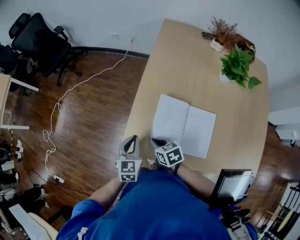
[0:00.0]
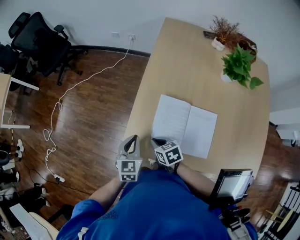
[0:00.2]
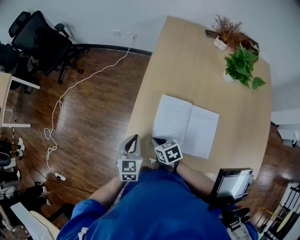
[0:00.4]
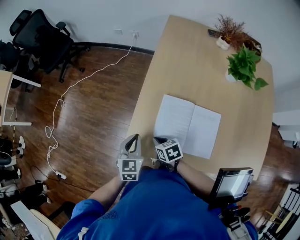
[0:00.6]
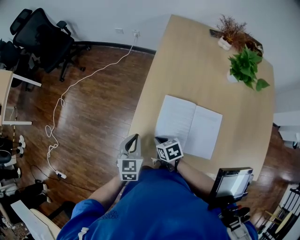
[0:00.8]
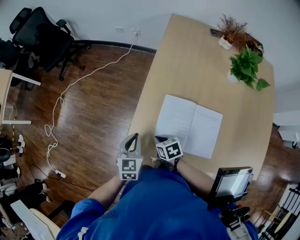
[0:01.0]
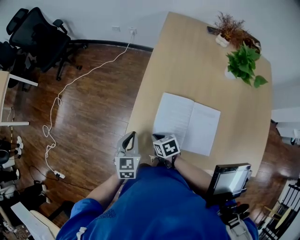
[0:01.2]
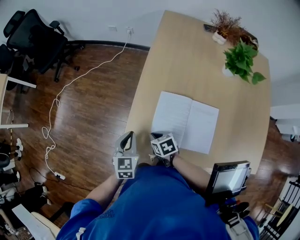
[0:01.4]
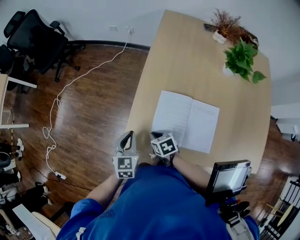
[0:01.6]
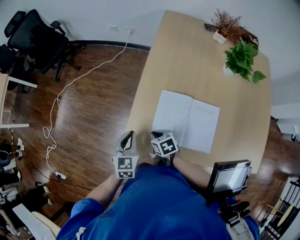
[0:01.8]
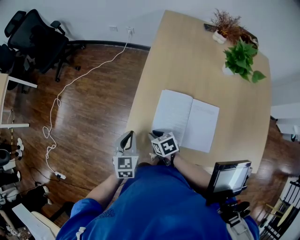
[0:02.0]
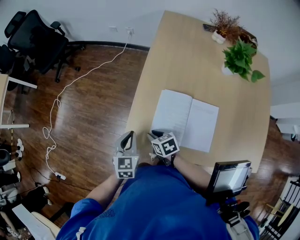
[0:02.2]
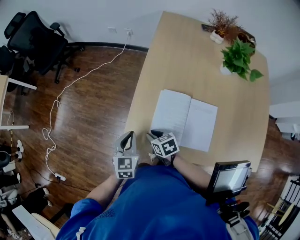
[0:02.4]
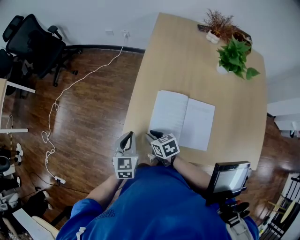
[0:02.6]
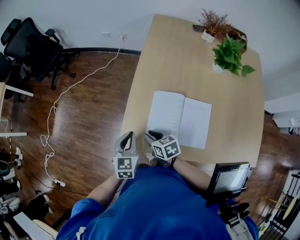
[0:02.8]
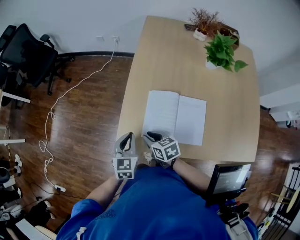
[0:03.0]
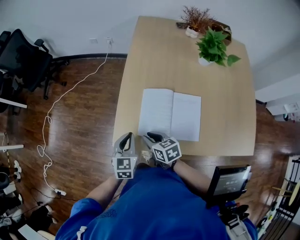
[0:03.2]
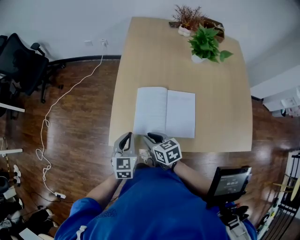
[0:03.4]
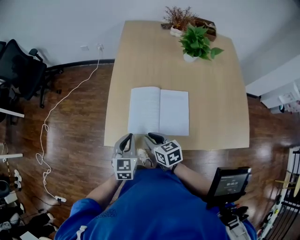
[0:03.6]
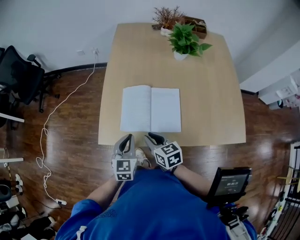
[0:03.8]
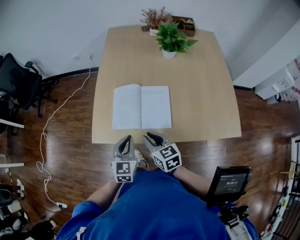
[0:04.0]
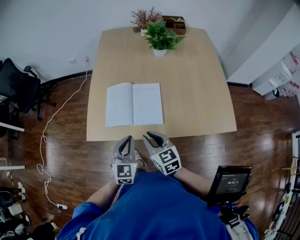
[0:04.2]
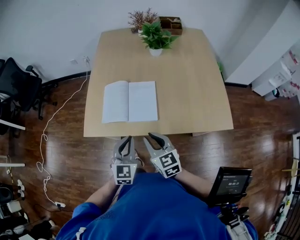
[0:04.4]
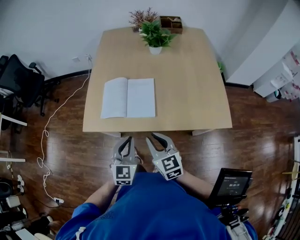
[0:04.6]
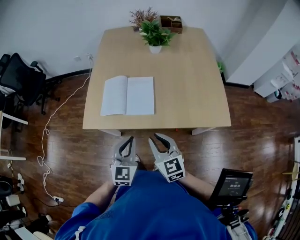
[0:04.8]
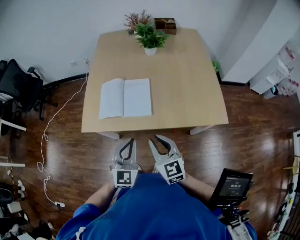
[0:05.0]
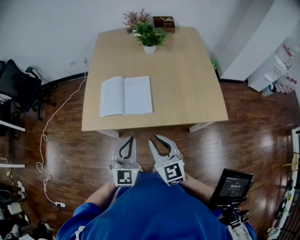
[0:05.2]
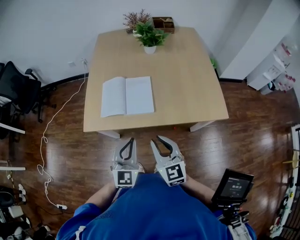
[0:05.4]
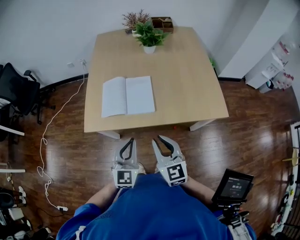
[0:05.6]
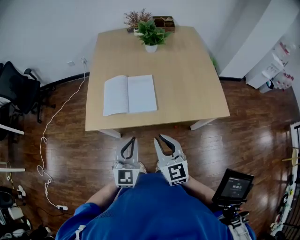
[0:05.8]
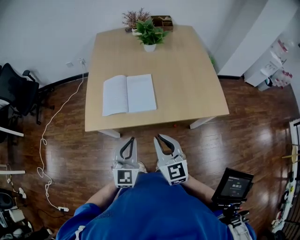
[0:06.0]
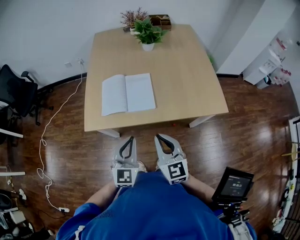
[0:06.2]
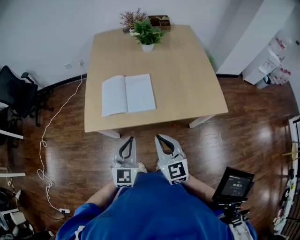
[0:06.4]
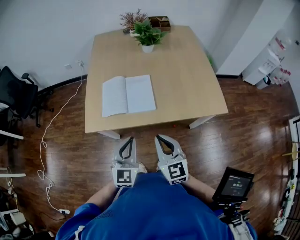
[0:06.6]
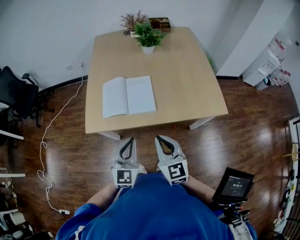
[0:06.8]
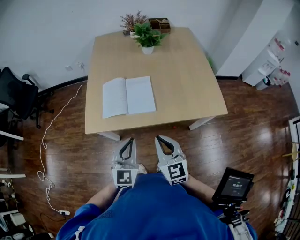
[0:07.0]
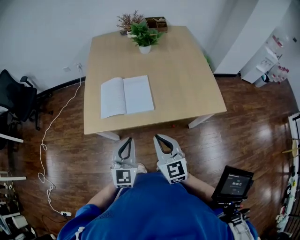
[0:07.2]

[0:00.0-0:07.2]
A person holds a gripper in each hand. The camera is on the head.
0.0 to 1.4 s: The right gripper heads downward, covering about 5 cm.
1.4 to 2.8 s: The right gripper is displaced upward by roughly 5 cm.
2.8 to 4.4 s: The left gripper is displaced backward and to the right by approximately 30 cm, and rotates roughly 20 degrees. Meanwhile the right gripper travels backward, to the right and upward by about 35 cm, and turns by some 40 degrees.
4.4 to 5.8 s: The left gripper is displaced backward by about 10 cm, while the right gripper is displaced backward and upward by approximately 10 cm.
5.8 to 7.2 s: Both grippers stay put.

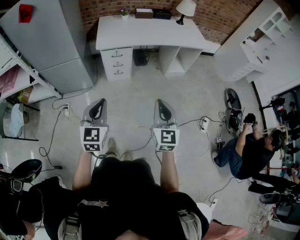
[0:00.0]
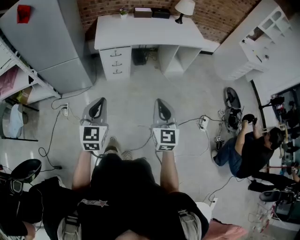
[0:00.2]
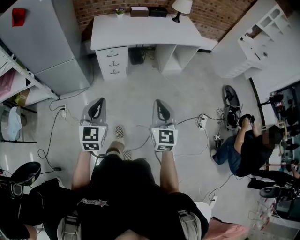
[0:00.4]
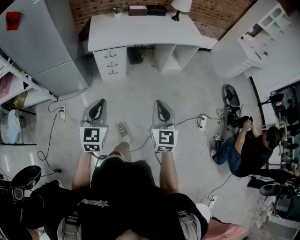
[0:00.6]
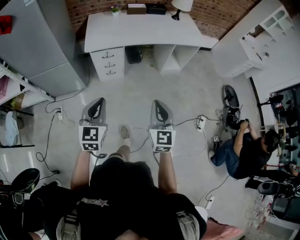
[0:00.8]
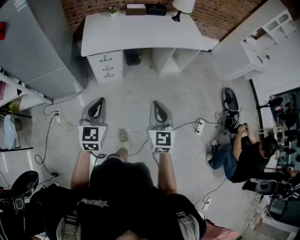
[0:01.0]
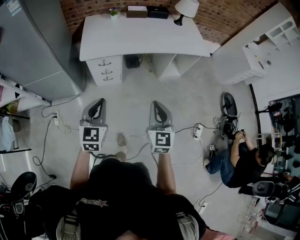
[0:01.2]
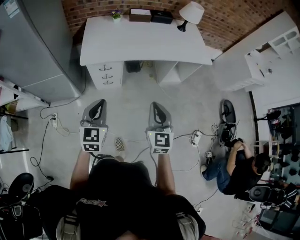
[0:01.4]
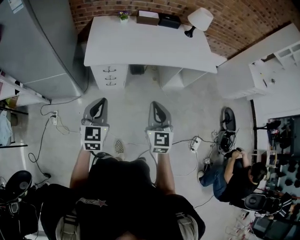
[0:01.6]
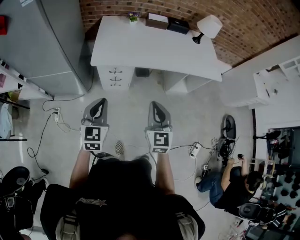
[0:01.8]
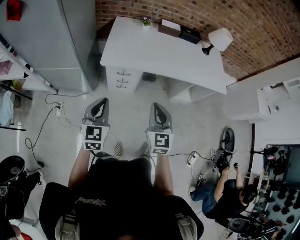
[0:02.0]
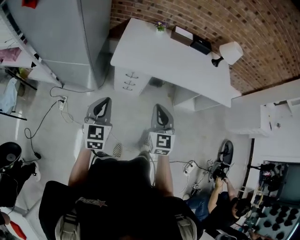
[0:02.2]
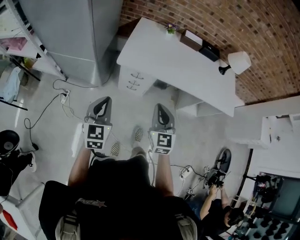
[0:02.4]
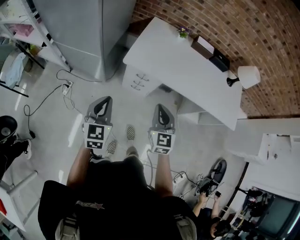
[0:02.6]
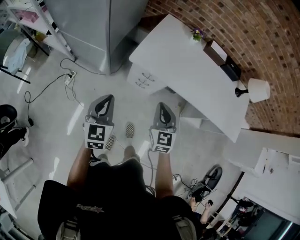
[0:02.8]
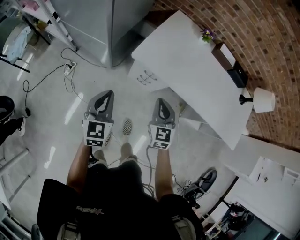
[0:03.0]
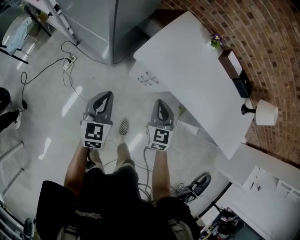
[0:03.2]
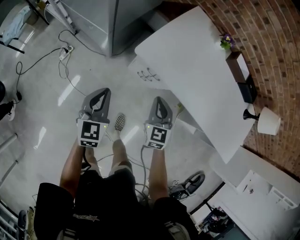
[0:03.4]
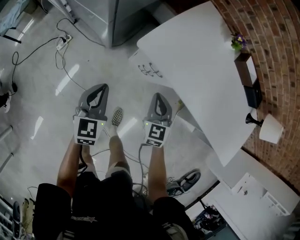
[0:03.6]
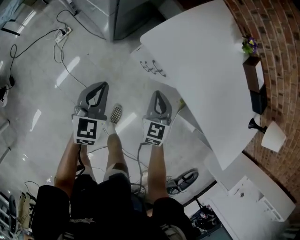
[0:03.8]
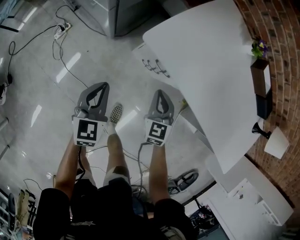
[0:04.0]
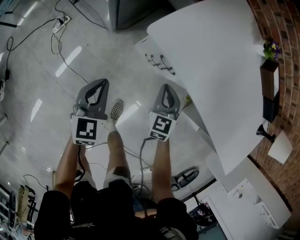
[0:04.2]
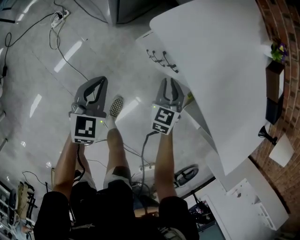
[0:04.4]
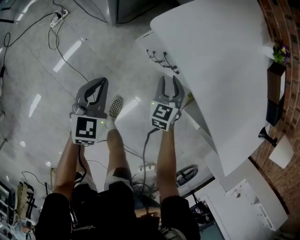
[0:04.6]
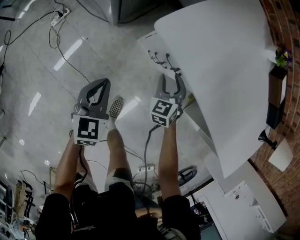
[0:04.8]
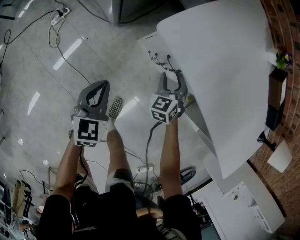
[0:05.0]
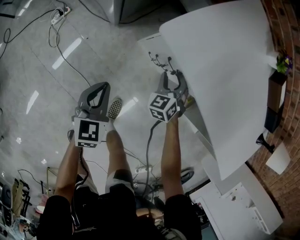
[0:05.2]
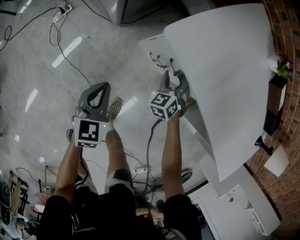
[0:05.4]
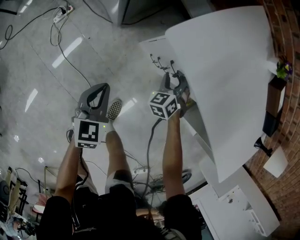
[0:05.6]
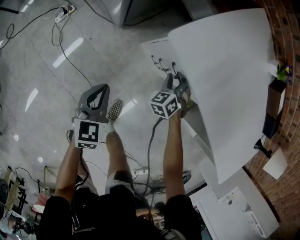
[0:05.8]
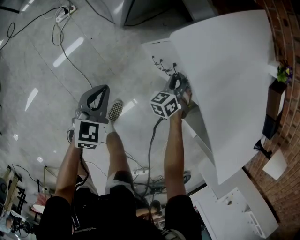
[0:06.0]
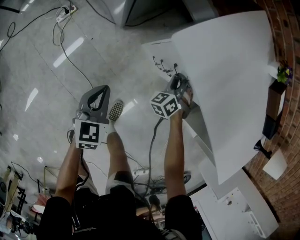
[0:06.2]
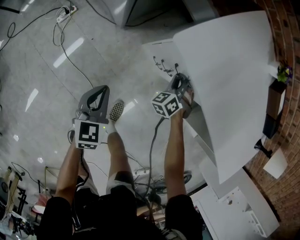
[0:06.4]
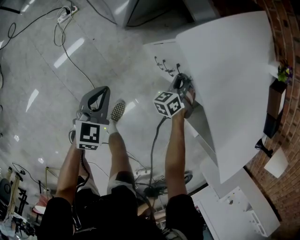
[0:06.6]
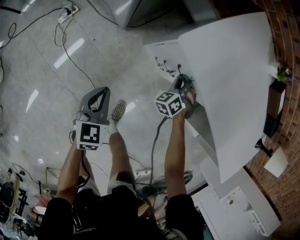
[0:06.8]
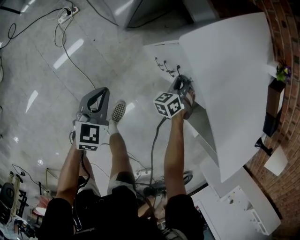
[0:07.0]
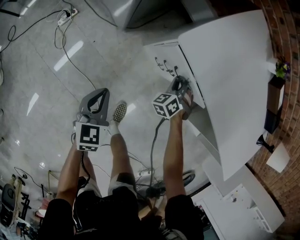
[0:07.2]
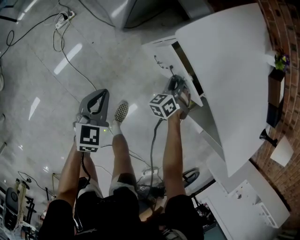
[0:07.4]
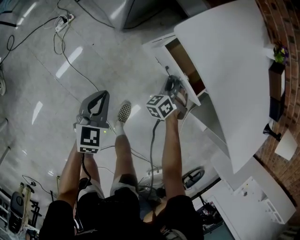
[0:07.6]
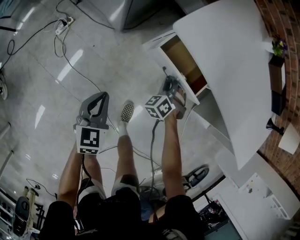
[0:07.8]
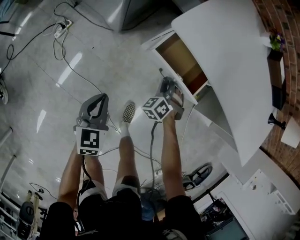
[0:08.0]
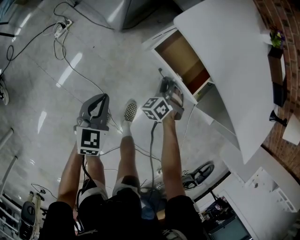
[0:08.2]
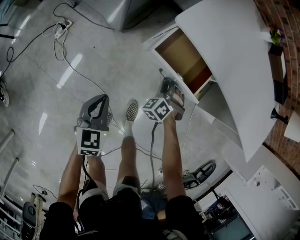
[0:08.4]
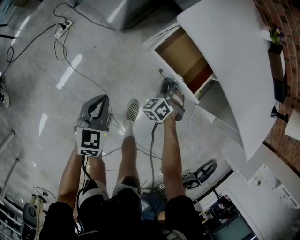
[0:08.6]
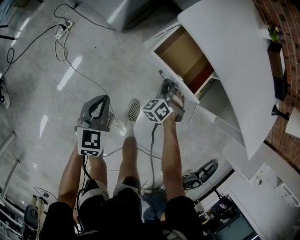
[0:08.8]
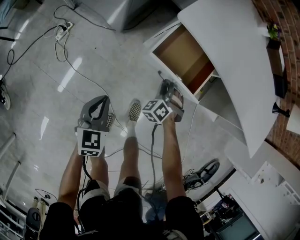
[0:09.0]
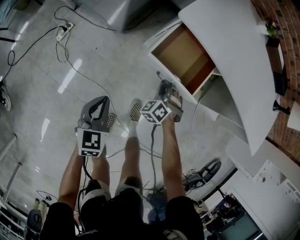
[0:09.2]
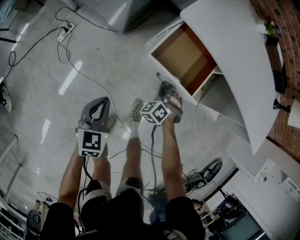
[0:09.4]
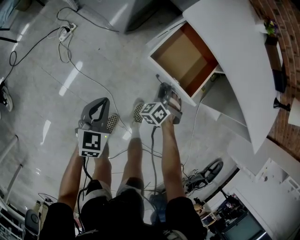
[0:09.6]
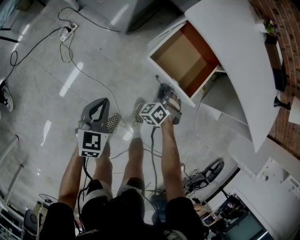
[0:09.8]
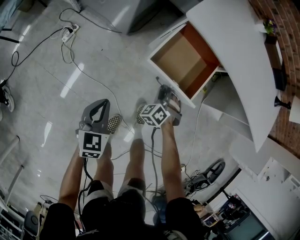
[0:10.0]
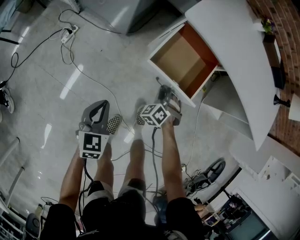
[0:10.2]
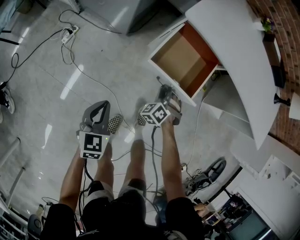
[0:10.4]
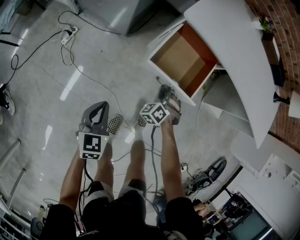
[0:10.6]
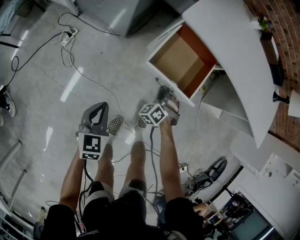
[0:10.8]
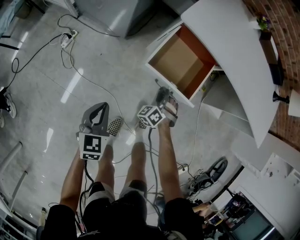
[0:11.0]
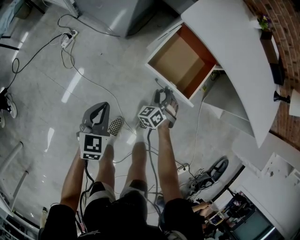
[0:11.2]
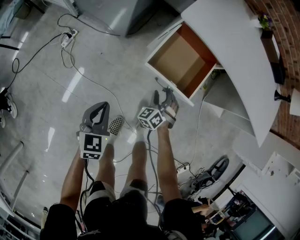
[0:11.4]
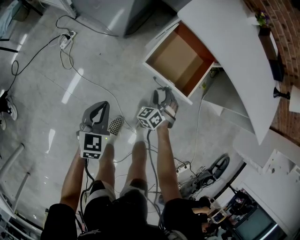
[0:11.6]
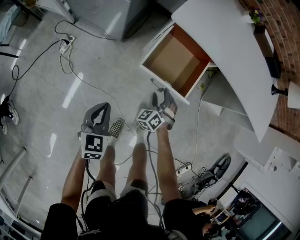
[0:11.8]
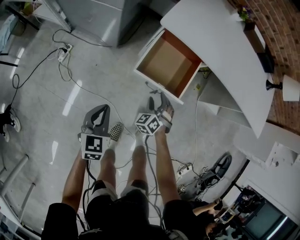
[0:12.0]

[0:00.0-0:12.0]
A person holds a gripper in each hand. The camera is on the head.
0.0 to 1.6 s: The two grippers go roughly 30 cm forward.
1.6 to 3.0 s: The right gripper ends up approximately 35 cm from where it was, and rotates some 30 degrees, while the left gripper ends up about 20 cm from where it was, and changes its angle by roughly 30 degrees.
3.0 to 4.4 s: The left gripper moves downward, some 30 cm. Meanwhile the right gripper shifts roughly 35 cm downward and forward, and swivels roughly 20 degrees.
4.4 to 6.0 s: The left gripper changes place by approximately 5 cm; the right gripper is displaced downward and forward by approximately 10 cm, changes its angle by roughly 40 degrees, and opens, then closes again.
6.0 to 7.6 s: The right gripper goes about 5 cm backward; the left gripper ends up about 5 cm from where it was.
7.6 to 9.0 s: The two grippers go roughly 10 cm backward.
9.0 to 10.4 s: Both grippers move backward, roughly 10 cm.
10.4 to 12.0 s: The left gripper shifts by some 5 cm; the right gripper moves roughly 5 cm, and opens.

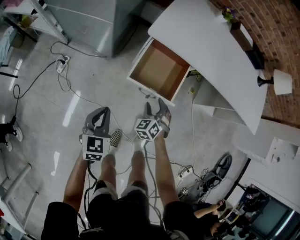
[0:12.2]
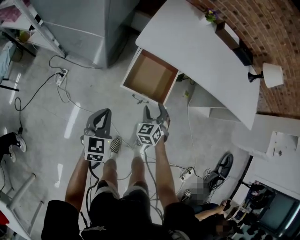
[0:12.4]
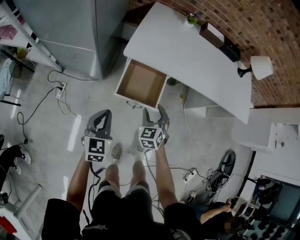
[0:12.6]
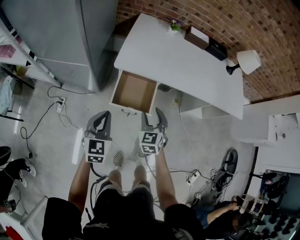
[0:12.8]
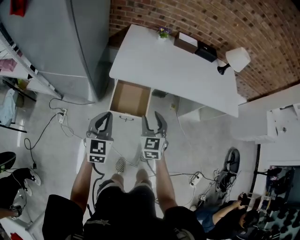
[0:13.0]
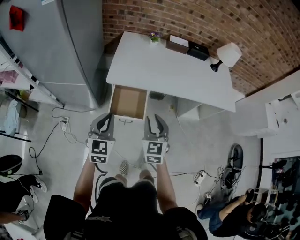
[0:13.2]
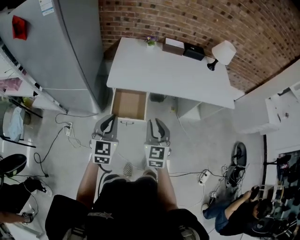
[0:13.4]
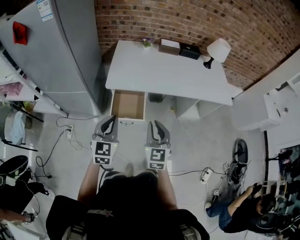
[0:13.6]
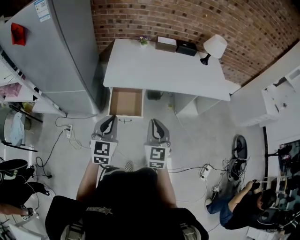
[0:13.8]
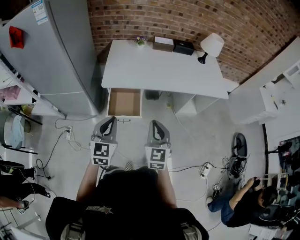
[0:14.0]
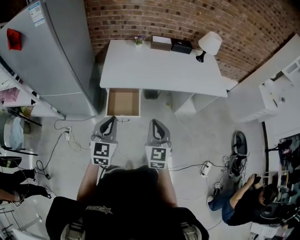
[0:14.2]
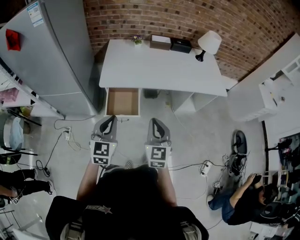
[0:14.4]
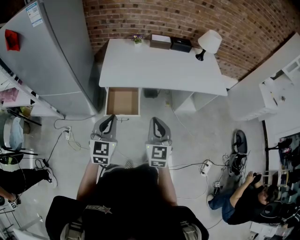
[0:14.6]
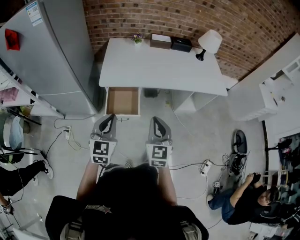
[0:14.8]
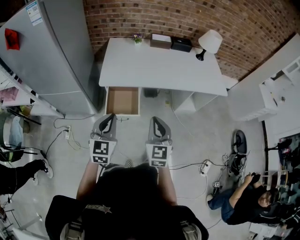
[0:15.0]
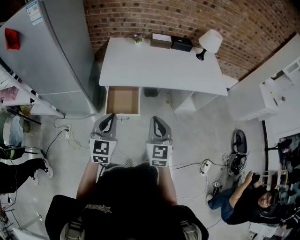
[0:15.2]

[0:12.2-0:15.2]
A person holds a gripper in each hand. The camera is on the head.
12.2 to 13.8 s: The right gripper moves upward, some 40 cm, angles its fingers upward, by approximately 30 degrees, and closes its fingers. The left gripper shifts approximately 40 cm upward and to the right, and changes its angle by roughly 30 degrees.
13.8 to 15.2 s: The grippers stay close to where they were, moving slightly.

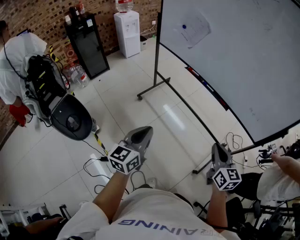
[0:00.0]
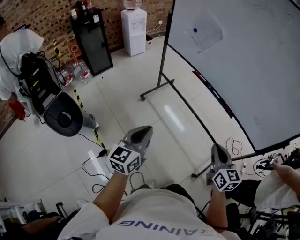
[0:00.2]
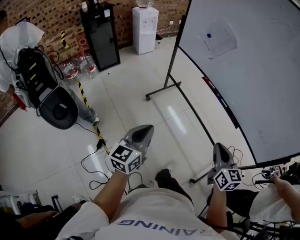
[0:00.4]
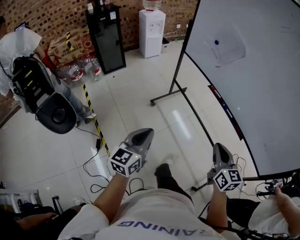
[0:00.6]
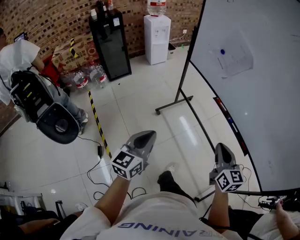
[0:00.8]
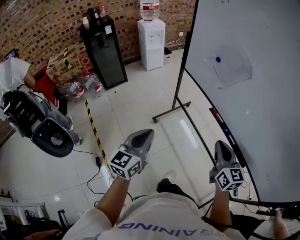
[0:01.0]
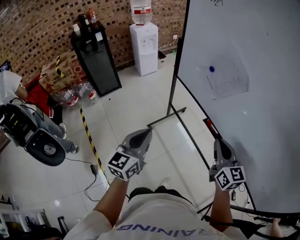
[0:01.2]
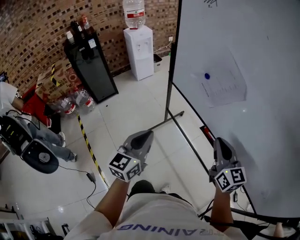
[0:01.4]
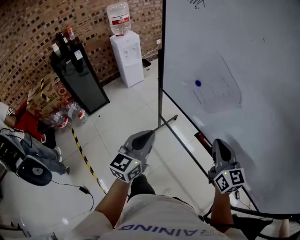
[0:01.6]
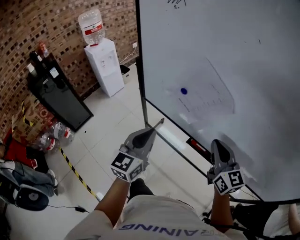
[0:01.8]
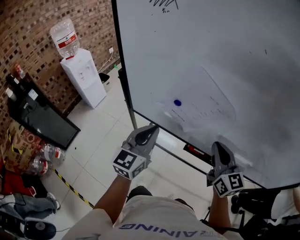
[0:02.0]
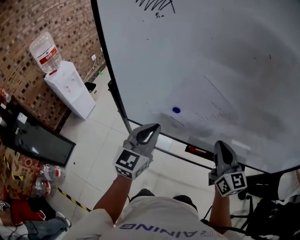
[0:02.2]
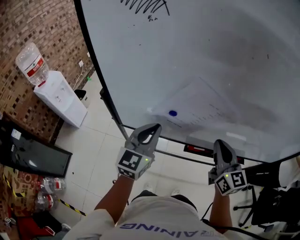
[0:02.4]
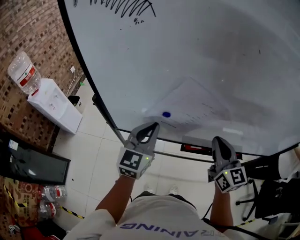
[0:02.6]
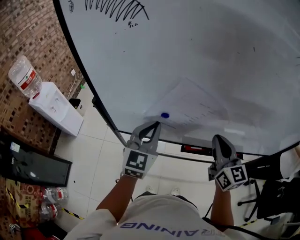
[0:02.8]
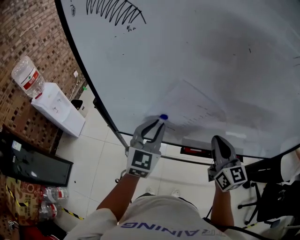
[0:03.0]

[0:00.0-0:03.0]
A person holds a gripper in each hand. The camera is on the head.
0.0 to 1.6 s: The pair of grippers is taken forward, approximately 50 cm.
1.6 to 3.0 s: The right gripper moves roughly 10 cm, and changes its angle by some 40 degrees; the left gripper shifts by about 25 cm, and changes its angle by approximately 40 degrees.
